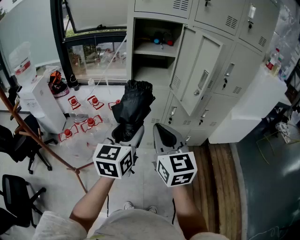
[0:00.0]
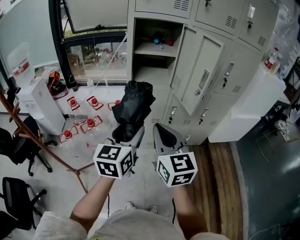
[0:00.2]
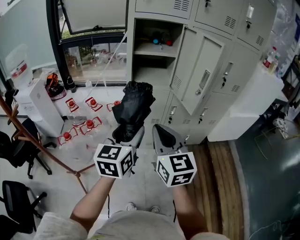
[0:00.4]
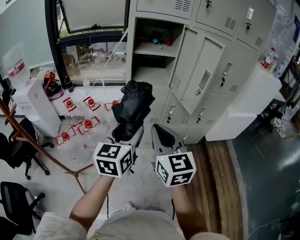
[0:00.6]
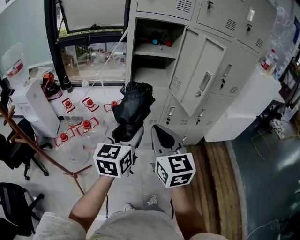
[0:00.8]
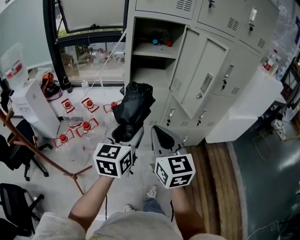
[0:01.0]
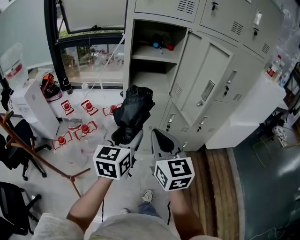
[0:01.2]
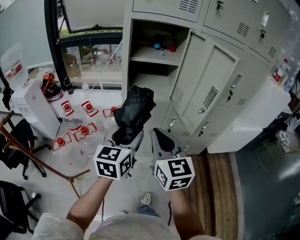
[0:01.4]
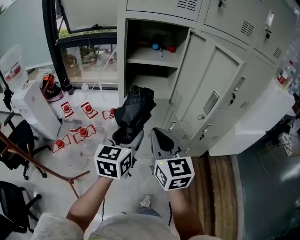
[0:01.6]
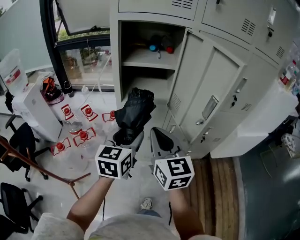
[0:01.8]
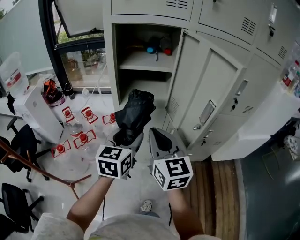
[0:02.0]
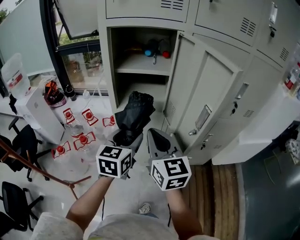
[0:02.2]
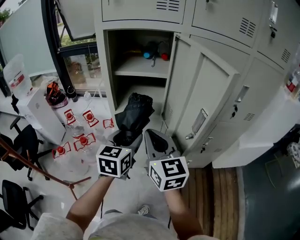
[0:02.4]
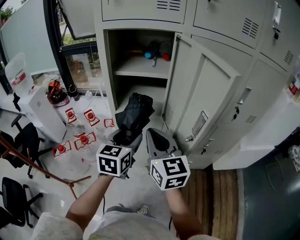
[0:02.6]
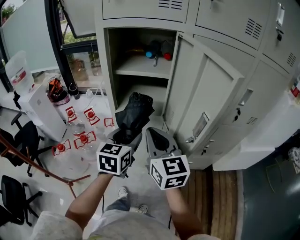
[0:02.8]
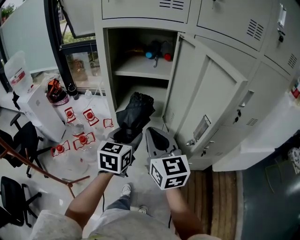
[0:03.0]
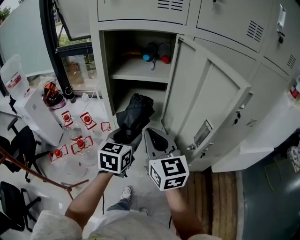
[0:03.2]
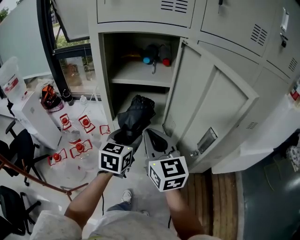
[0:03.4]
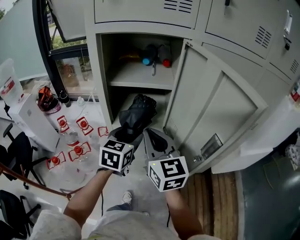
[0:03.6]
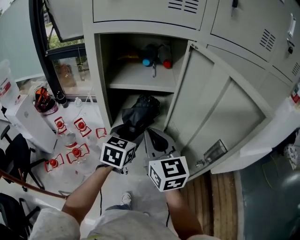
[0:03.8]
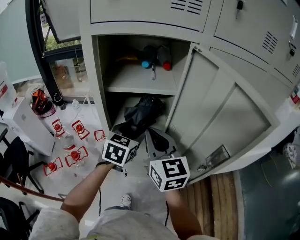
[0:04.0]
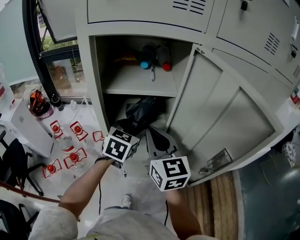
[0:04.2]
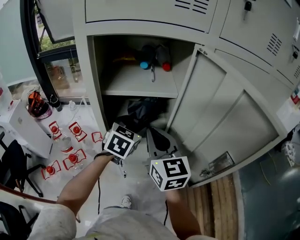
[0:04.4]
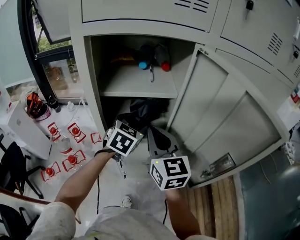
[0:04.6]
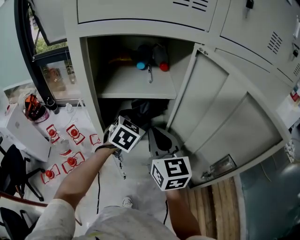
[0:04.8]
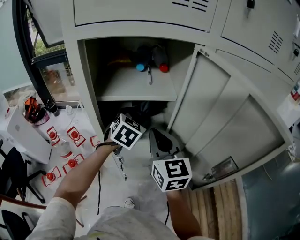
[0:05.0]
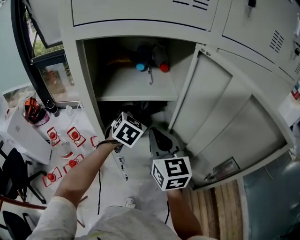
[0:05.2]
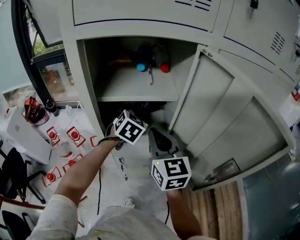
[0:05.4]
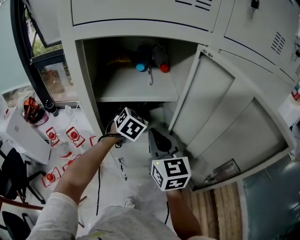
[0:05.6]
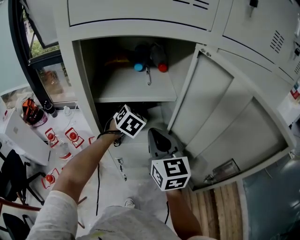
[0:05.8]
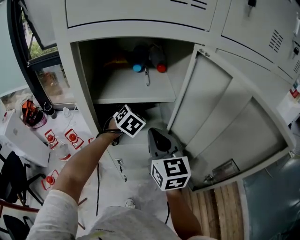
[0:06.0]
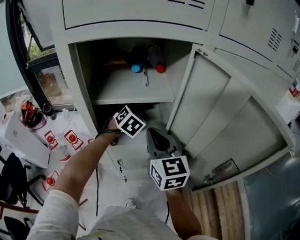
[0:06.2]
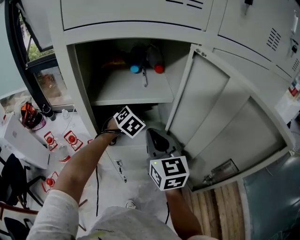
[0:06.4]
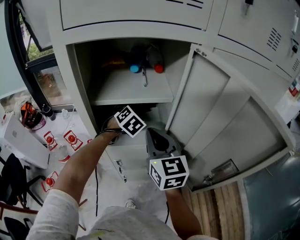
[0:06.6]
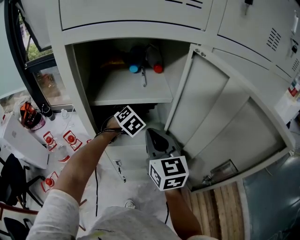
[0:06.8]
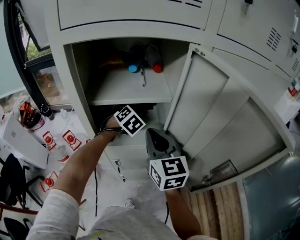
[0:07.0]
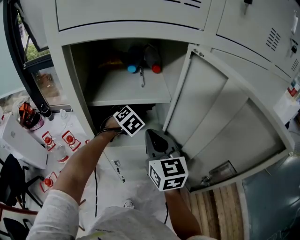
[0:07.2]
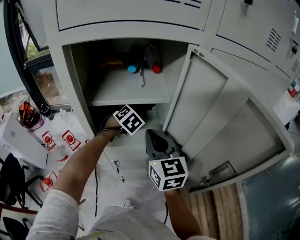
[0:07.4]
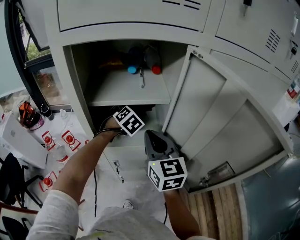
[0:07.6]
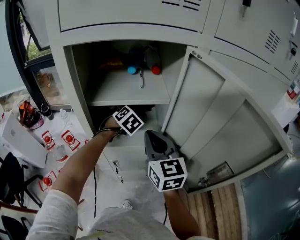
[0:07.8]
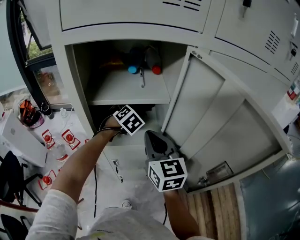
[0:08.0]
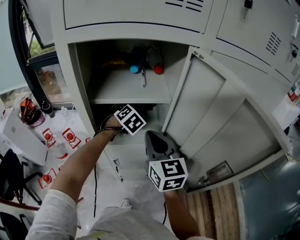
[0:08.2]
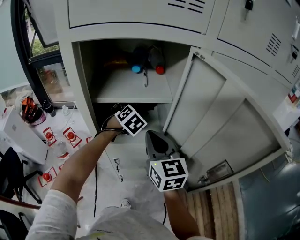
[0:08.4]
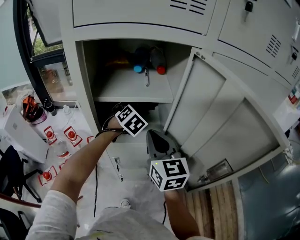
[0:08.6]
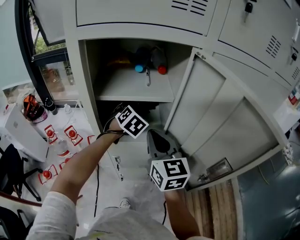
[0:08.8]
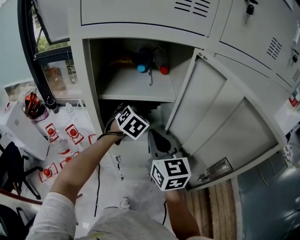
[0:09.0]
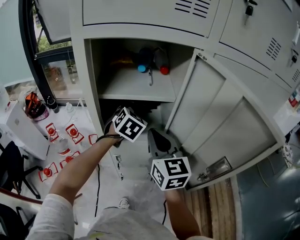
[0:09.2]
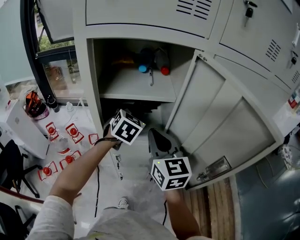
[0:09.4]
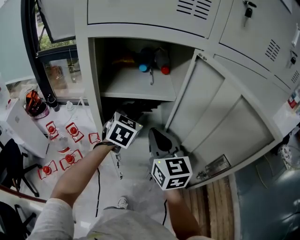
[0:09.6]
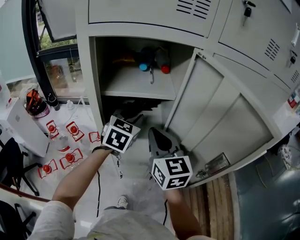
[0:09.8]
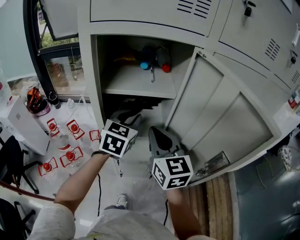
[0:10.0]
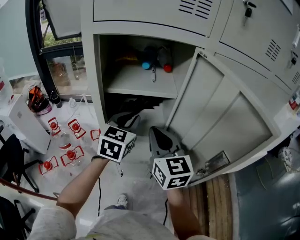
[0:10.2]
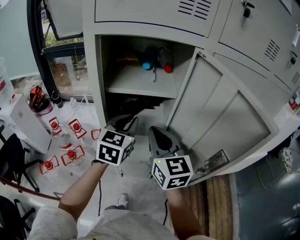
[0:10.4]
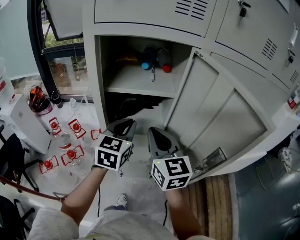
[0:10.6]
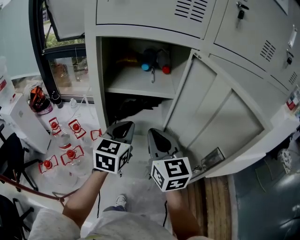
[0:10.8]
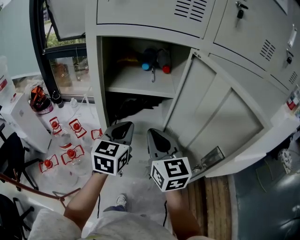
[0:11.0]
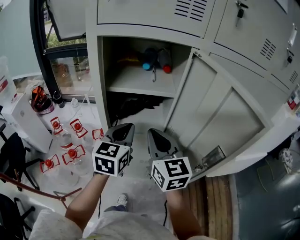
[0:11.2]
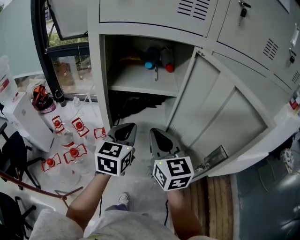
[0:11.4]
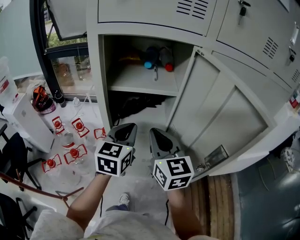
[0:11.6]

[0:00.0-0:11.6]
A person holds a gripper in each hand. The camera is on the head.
0:00.0 to 0:01.4: The grippers both shift forward by about 10 cm.
0:01.4 to 0:02.8: The grippers both shift forward and to the right by approximately 15 cm.
0:02.8 to 0:04.4: Both grippers travel together forward, approximately 15 cm. The left gripper swivels approximately 30 degrees.
0:04.4 to 0:05.8: The left gripper heads forward, covering roughly 10 cm.
0:05.8 to 0:07.2: The left gripper changes place by approximately 5 cm.
0:07.2 to 0:08.8: The left gripper shifts by some 5 cm.
0:08.8 to 0:10.2: The left gripper is displaced backward and upward by roughly 15 cm, swivels roughly 30 degrees, and closes up.
0:10.2 to 0:11.6: The left gripper is displaced backward by approximately 5 cm.

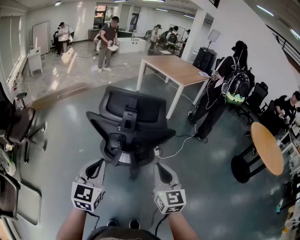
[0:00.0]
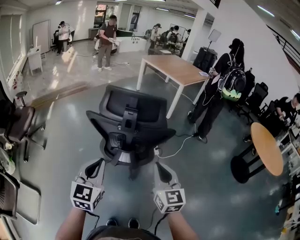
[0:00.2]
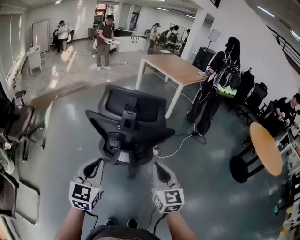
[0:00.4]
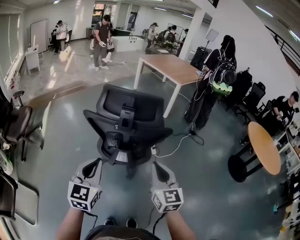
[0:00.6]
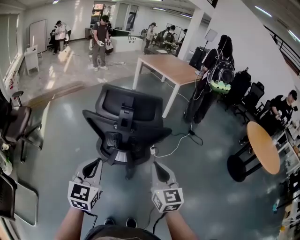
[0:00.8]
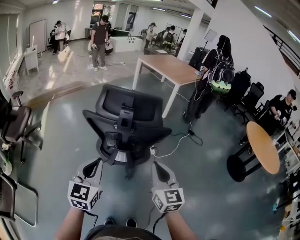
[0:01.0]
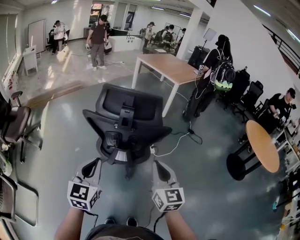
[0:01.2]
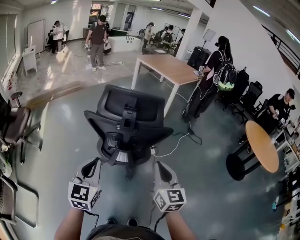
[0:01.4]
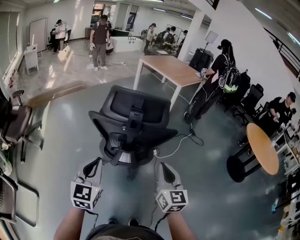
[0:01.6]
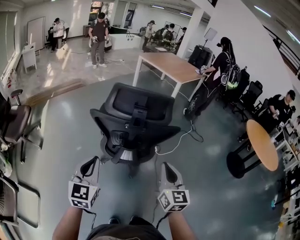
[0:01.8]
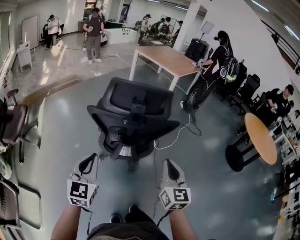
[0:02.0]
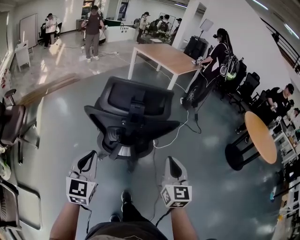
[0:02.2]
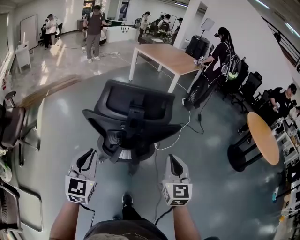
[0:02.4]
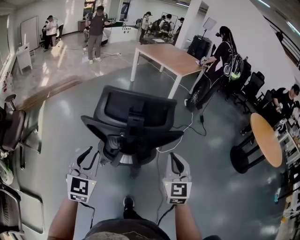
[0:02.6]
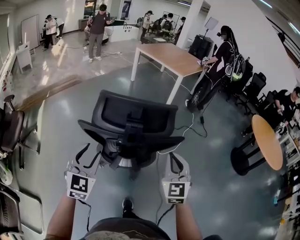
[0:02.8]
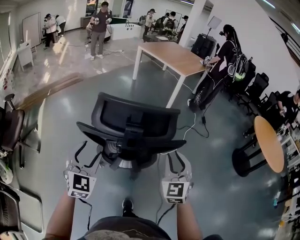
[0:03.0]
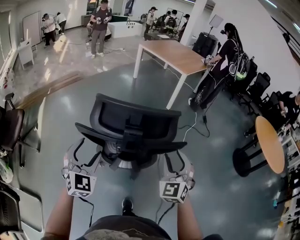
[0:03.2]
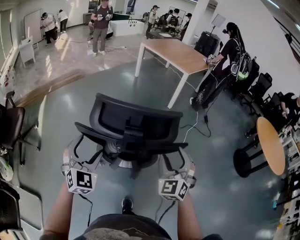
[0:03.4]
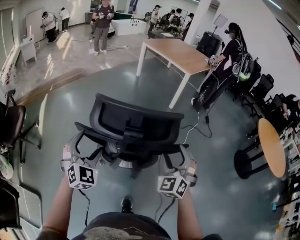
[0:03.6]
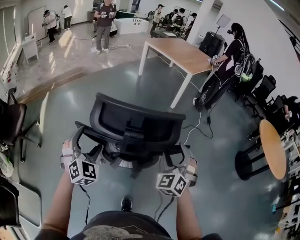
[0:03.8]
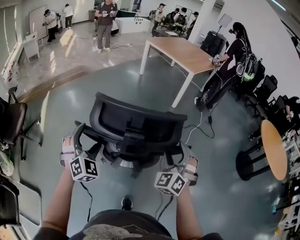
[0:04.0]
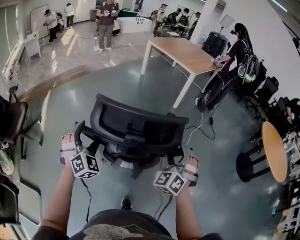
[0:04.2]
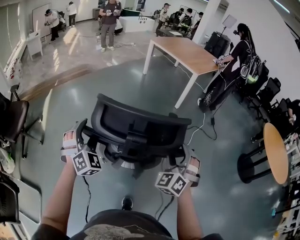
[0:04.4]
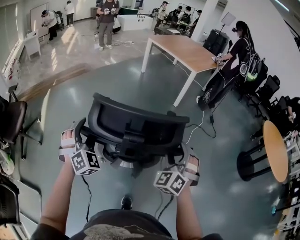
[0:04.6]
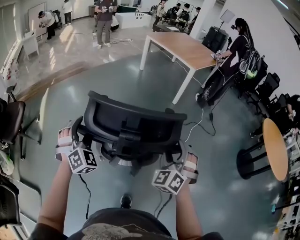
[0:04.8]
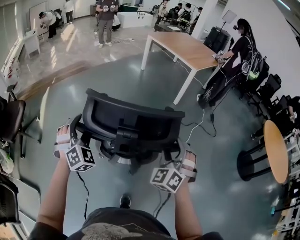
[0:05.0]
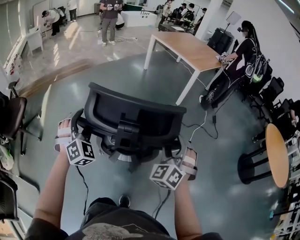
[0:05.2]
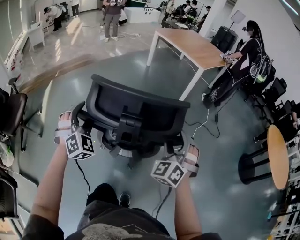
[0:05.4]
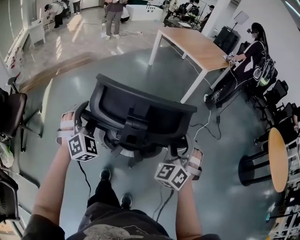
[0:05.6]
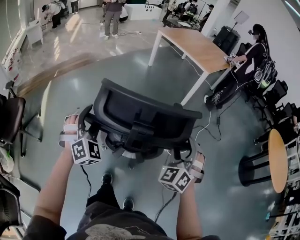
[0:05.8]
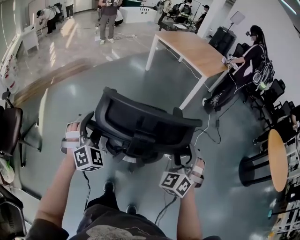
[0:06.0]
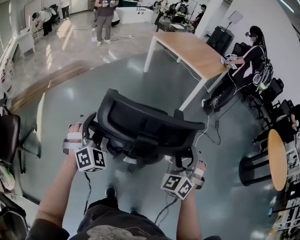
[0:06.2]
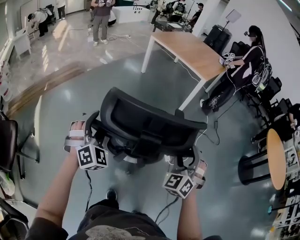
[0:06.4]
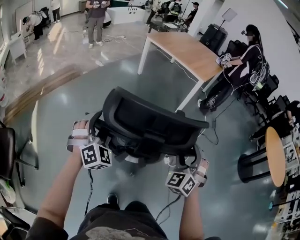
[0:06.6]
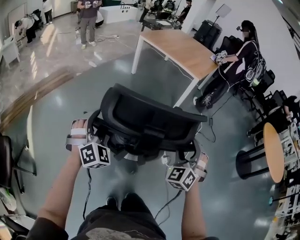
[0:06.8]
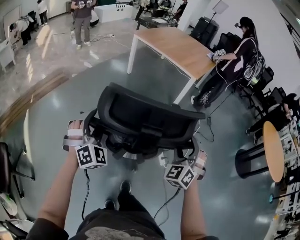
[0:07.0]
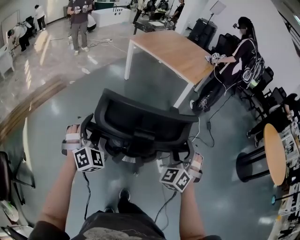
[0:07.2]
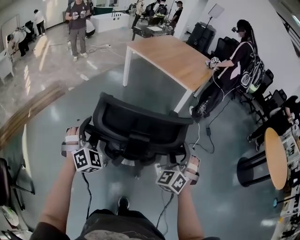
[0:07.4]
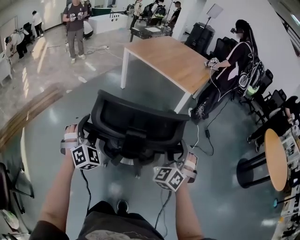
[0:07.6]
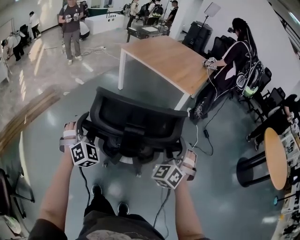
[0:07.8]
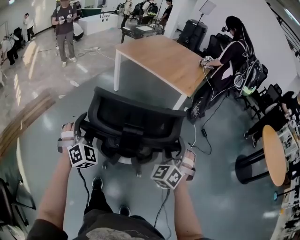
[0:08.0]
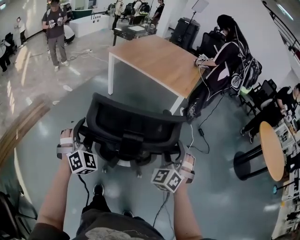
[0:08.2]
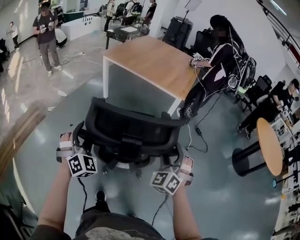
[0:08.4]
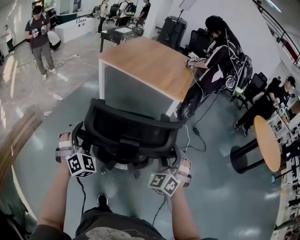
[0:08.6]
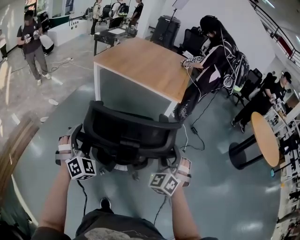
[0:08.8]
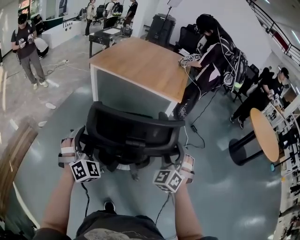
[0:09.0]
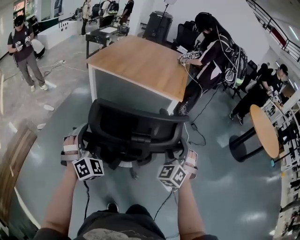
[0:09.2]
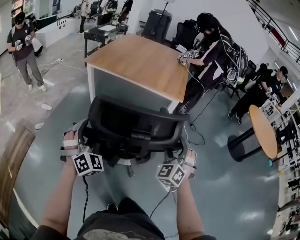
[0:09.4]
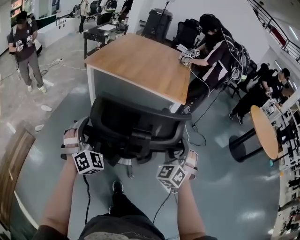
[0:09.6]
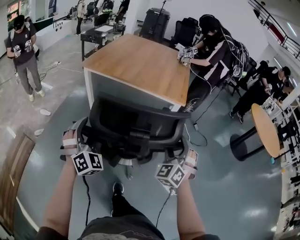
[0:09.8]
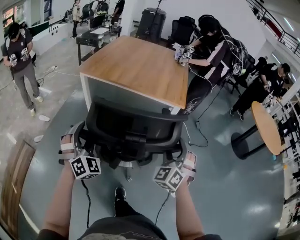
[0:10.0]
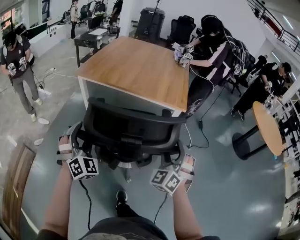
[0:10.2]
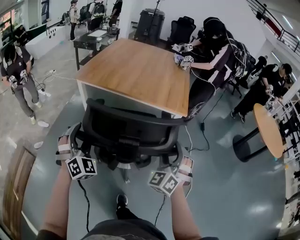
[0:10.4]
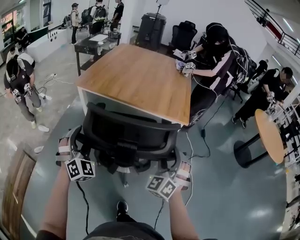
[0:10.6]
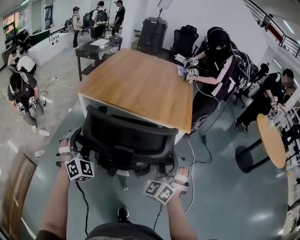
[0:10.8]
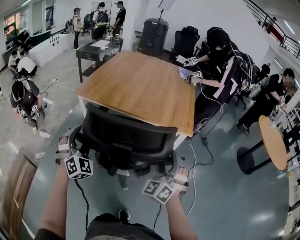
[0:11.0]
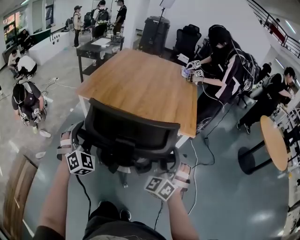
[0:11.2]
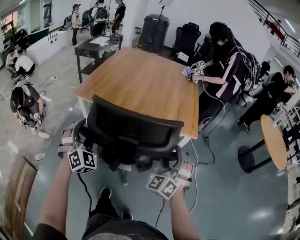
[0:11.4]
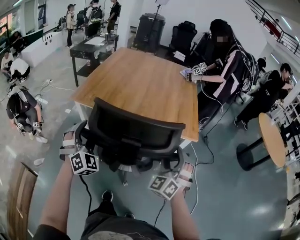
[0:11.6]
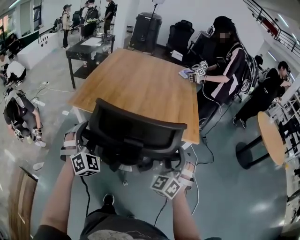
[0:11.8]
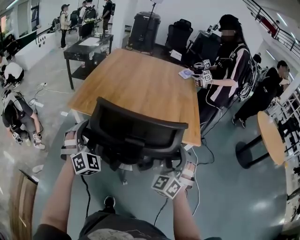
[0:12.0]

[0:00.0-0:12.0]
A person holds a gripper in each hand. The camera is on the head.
0:00.0 to 0:01.6: There are only small adjustments of the grippers.
0:01.6 to 0:03.0: Both grippers travel together forward, about 15 cm. The right gripper rotates about 30 degrees. Meanwhile the left gripper changes its angle by approximately 20 degrees, and opens its fingers.
0:03.0 to 0:04.4: The grippers both shift forward by about 10 cm. The right gripper rotates some 30 degrees, and opens; the left gripper swivels approximately 40 degrees.
0:04.4 to 0:06.0: Both grippers move forward, roughly 15 cm.
0:06.0 to 0:07.6: The grippers both shift forward by approximately 35 cm.
0:07.6 to 0:09.0: Both grippers move forward and to the left, approximately 20 cm.
0:09.0 to 0:10.4: The left gripper goes approximately 20 cm forward; the right gripper shifts some 20 cm forward and to the left.
0:10.4 to 0:12.0: The two grippers go approximately 20 cm forward.
